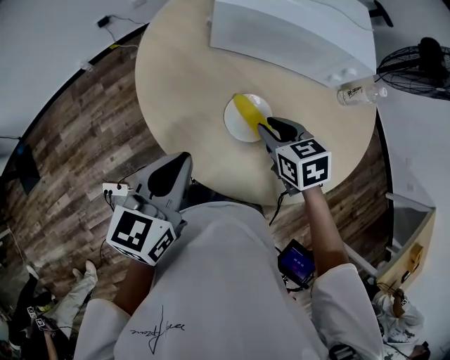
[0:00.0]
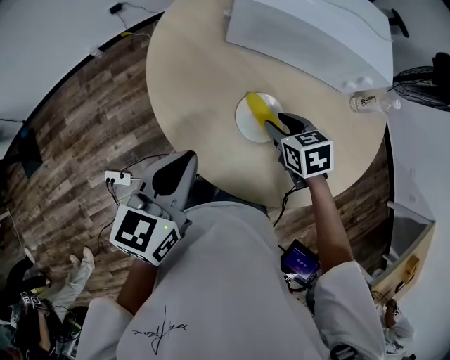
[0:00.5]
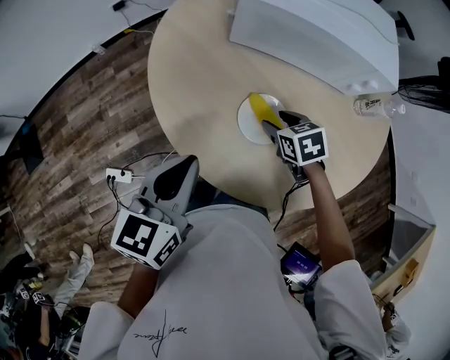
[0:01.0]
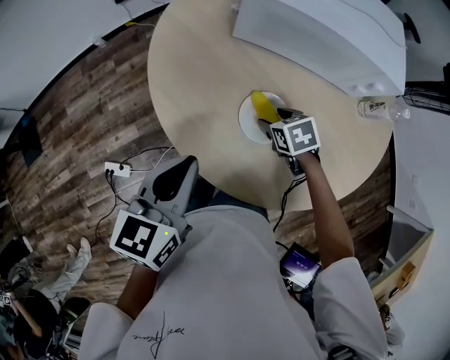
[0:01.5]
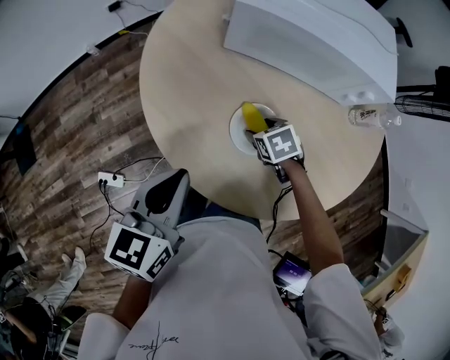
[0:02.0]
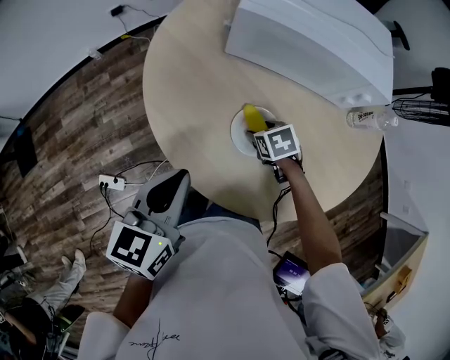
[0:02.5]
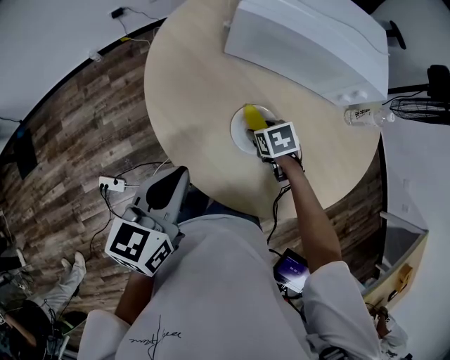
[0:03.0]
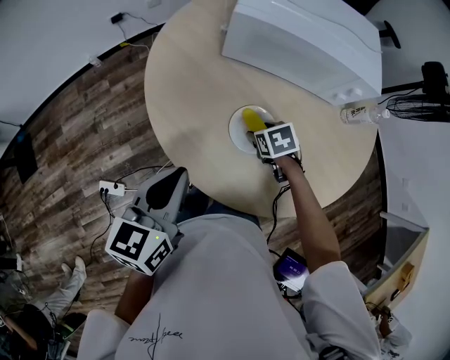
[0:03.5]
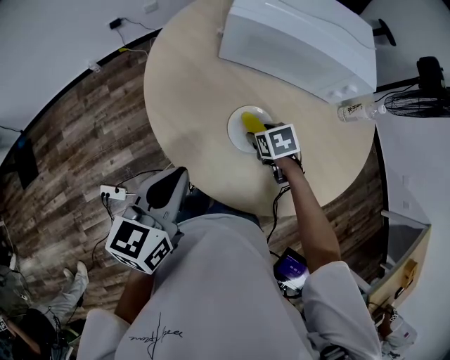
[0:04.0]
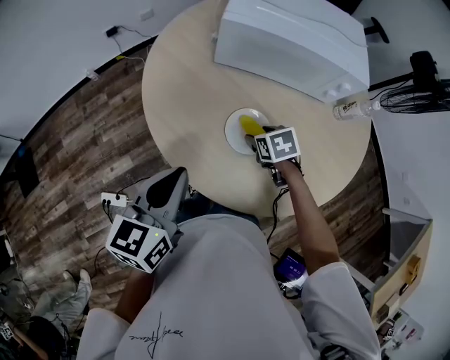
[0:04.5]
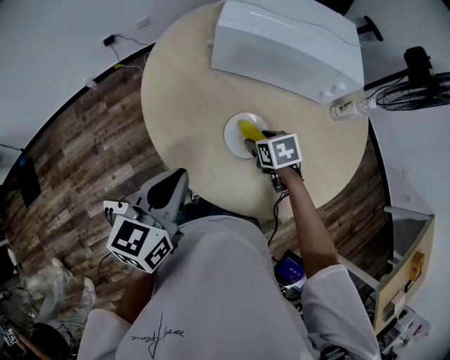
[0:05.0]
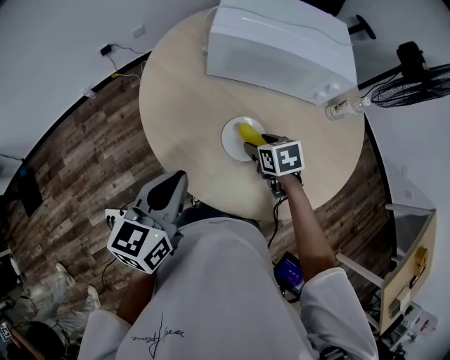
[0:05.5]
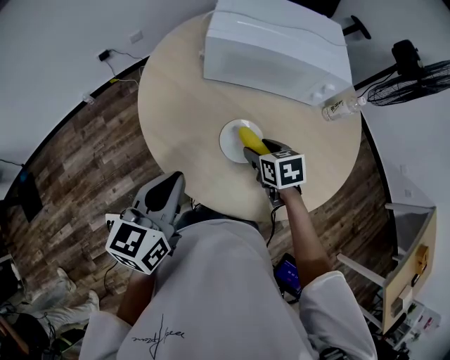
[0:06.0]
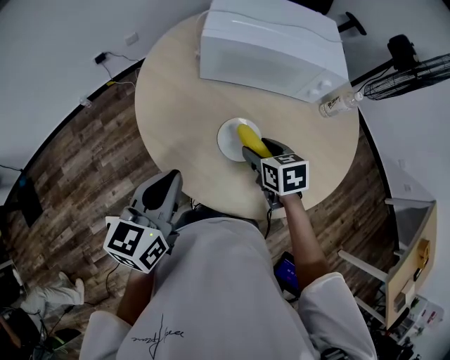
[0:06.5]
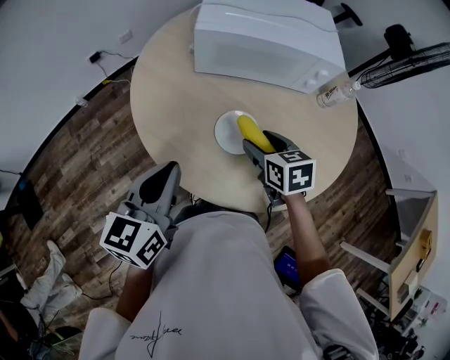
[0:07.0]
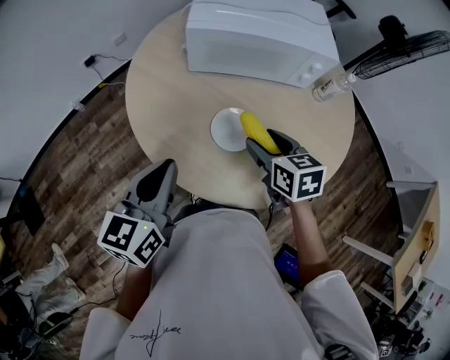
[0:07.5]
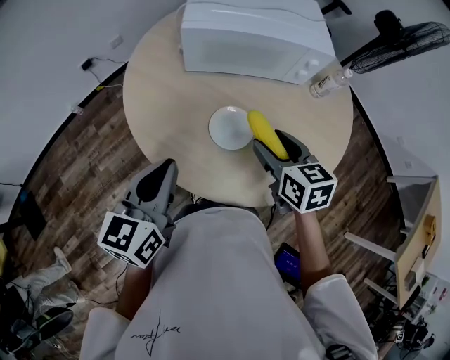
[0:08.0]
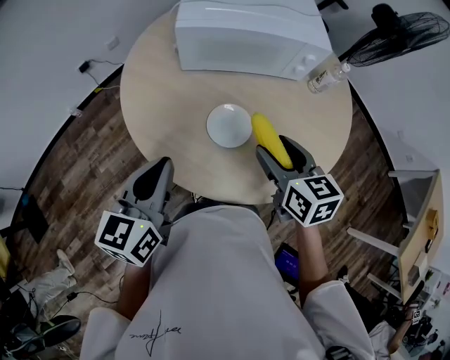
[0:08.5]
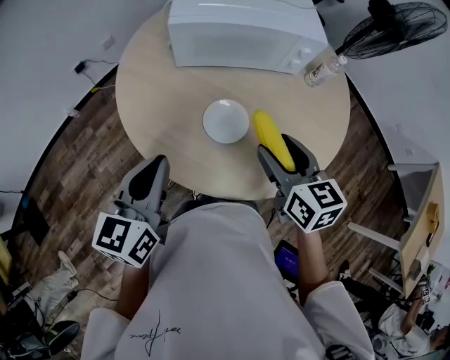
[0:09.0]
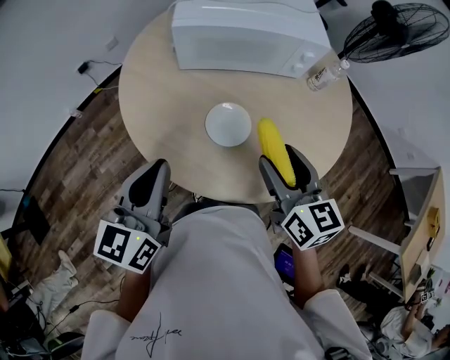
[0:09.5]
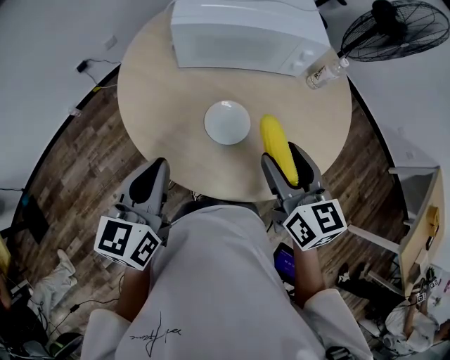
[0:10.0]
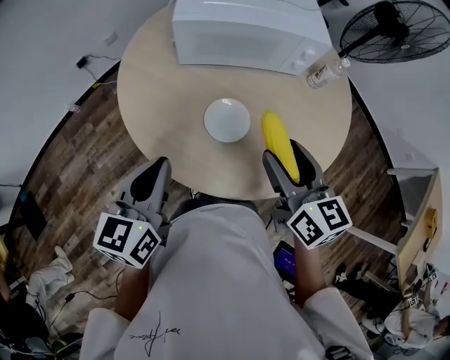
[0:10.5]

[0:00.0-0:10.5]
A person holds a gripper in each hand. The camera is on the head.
0:00.0 to 0:02.0: The right gripper goes roughly 15 cm downward, swivels approximately 20 degrees, and opens up.
0:02.0 to 0:04.0: The grippers make only small movements.
0:04.0 to 0:06.5: The right gripper is displaced upward by approximately 10 cm, and rotates approximately 20 degrees.
0:06.5 to 0:08.5: The right gripper travels upward and backward by about 10 cm, and turns by about 20 degrees.
0:08.5 to 0:10.5: The right gripper moves upward, some 5 cm.

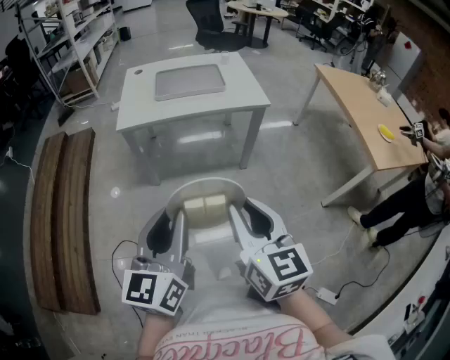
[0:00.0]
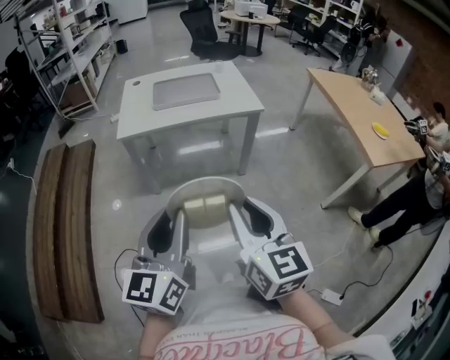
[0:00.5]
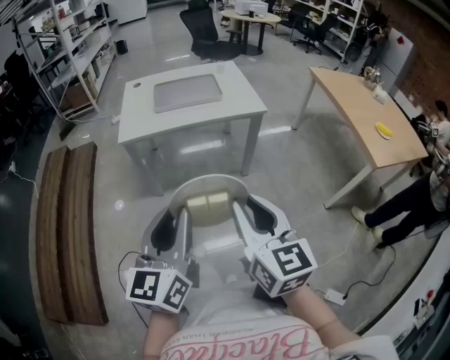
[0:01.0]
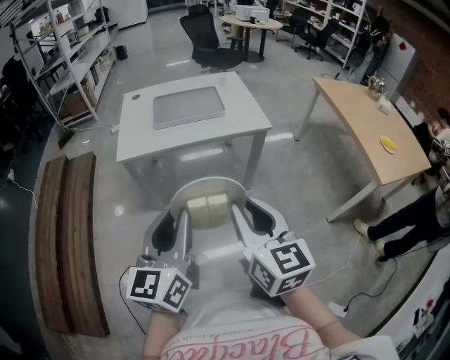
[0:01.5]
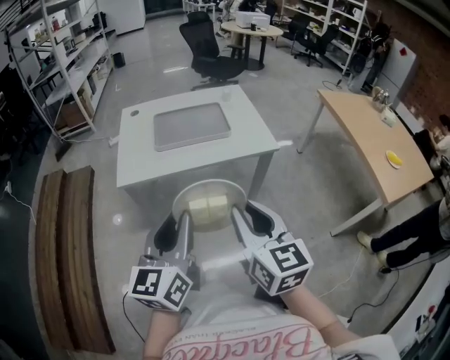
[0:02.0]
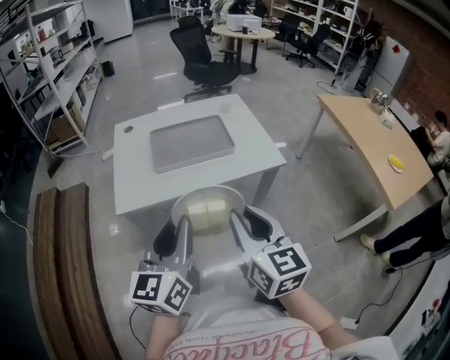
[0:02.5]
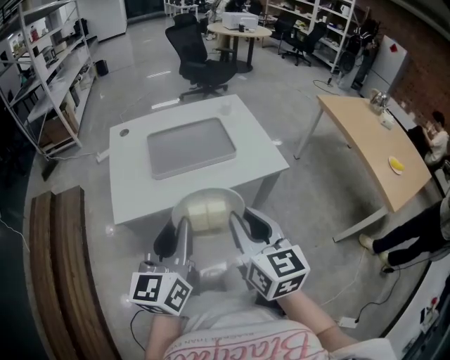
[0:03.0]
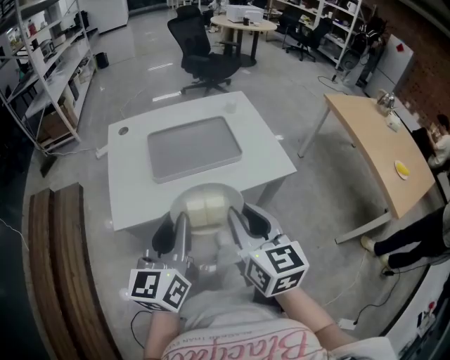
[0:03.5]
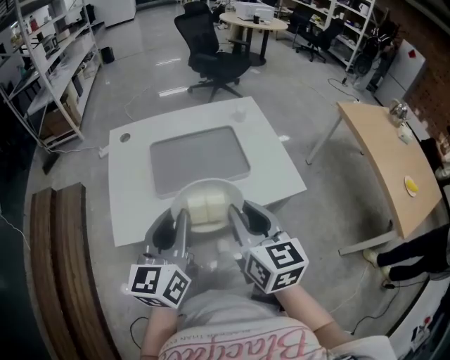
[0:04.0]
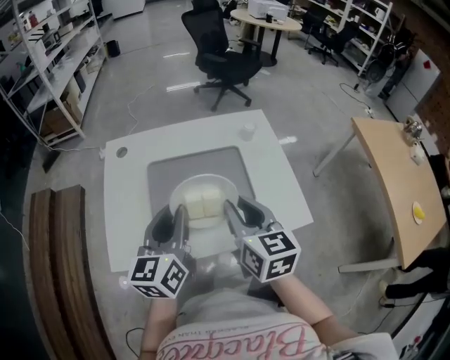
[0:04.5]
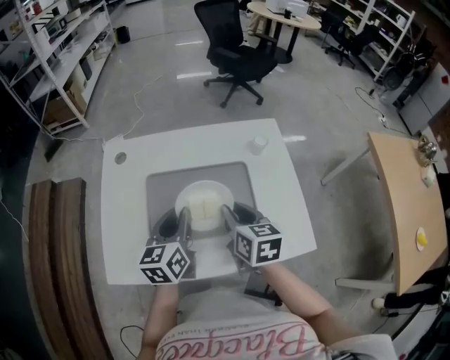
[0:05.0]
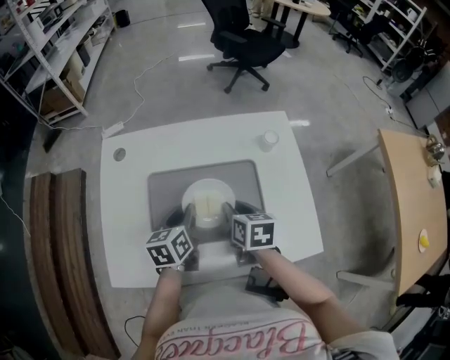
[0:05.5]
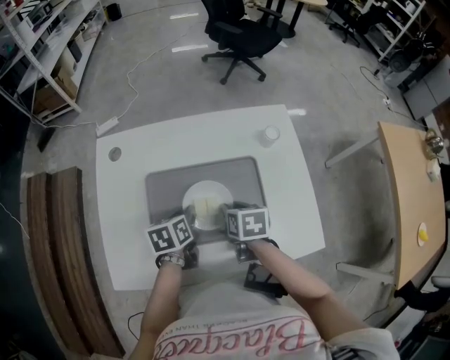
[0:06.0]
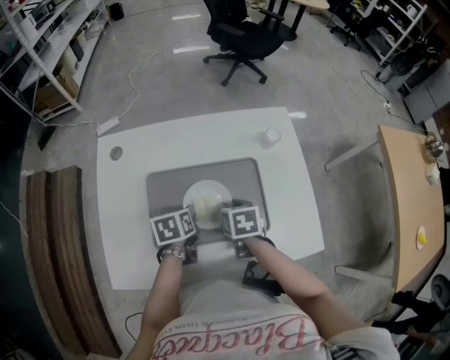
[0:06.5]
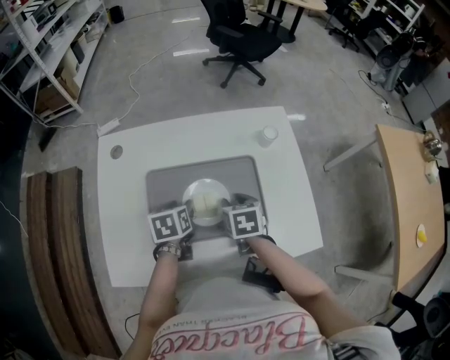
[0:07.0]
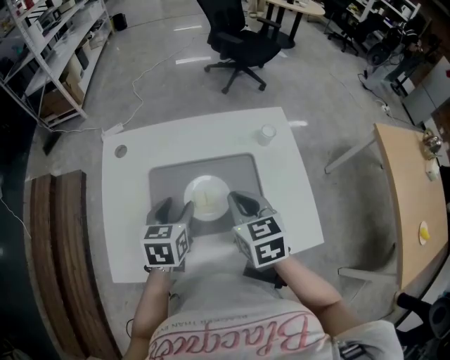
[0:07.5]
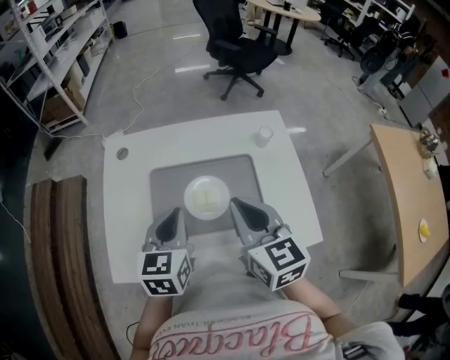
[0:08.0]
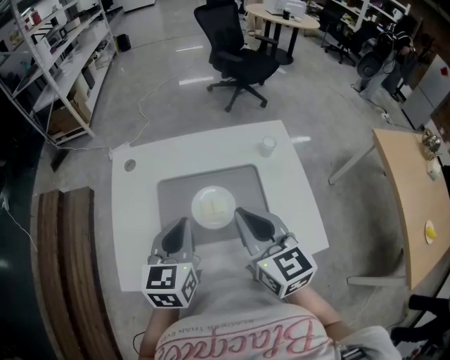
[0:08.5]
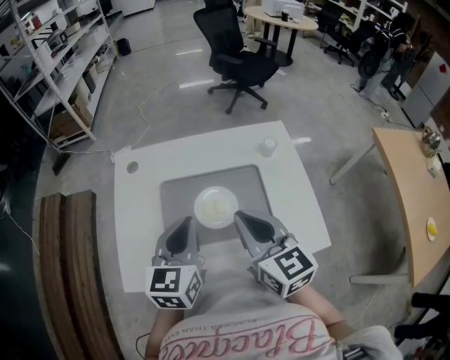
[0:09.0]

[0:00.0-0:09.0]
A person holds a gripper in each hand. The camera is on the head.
0:00.0 to 0:02.0: The grippers both shift forward by about 15 cm.
0:02.0 to 0:04.5: Both grippers move forward, some 35 cm.
0:04.5 to 0:07.0: Both grippers move downward and forward, some 25 cm. The right gripper tips its fingers downward by some 40 degrees; the left gripper tilts its fingers about 50 degrees downward, and opens.
0:07.0 to 0:09.0: The two grippers go some 20 cm upward. The left gripper tips its fingers upward by some 40 degrees, and closes its fingers, while the right gripper points its fingers some 40 degrees further upward, and closes up.

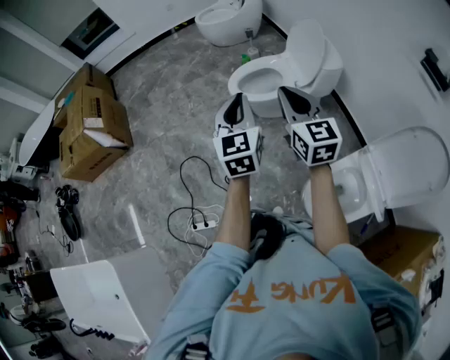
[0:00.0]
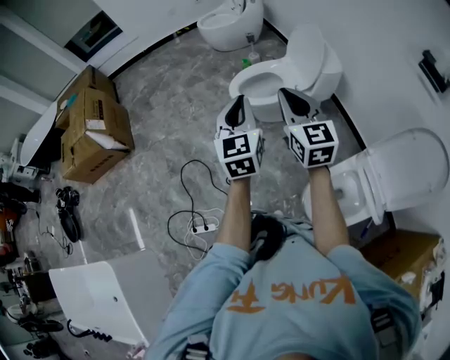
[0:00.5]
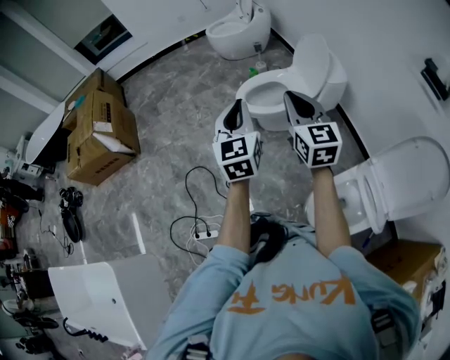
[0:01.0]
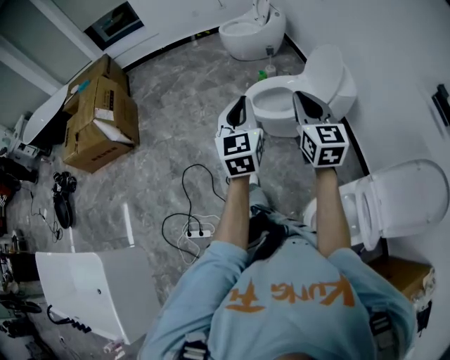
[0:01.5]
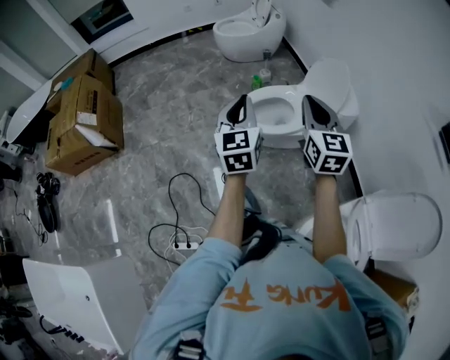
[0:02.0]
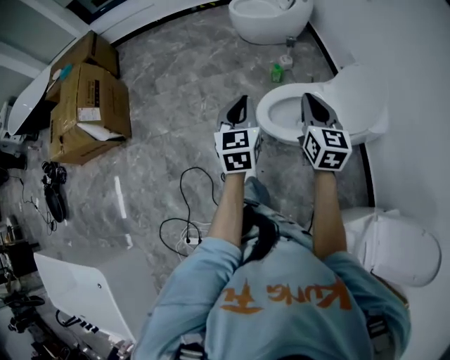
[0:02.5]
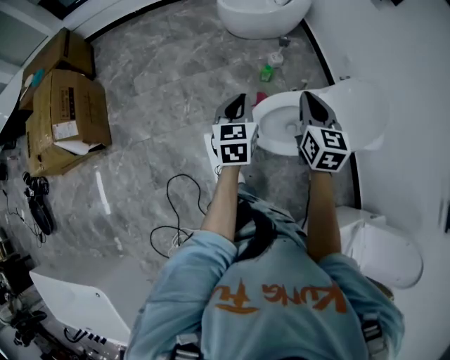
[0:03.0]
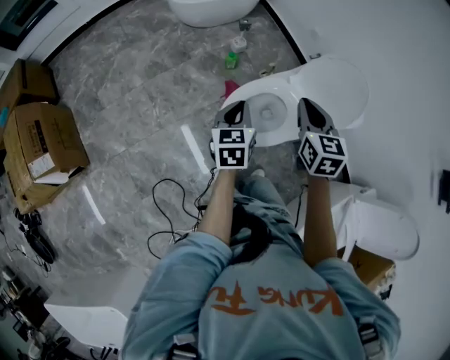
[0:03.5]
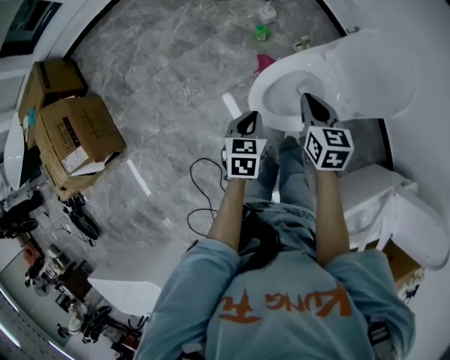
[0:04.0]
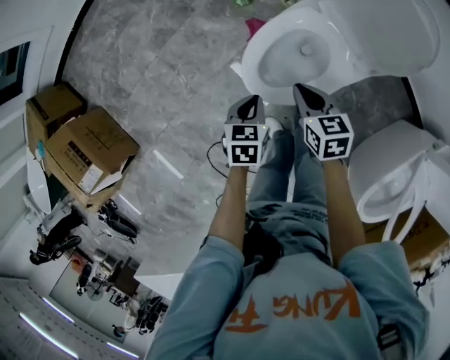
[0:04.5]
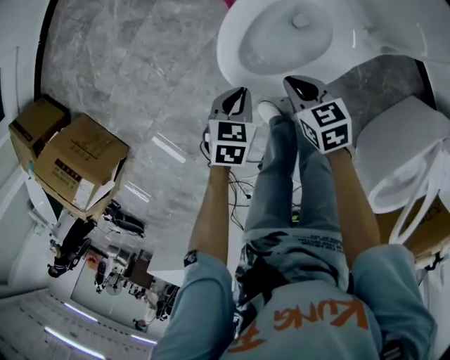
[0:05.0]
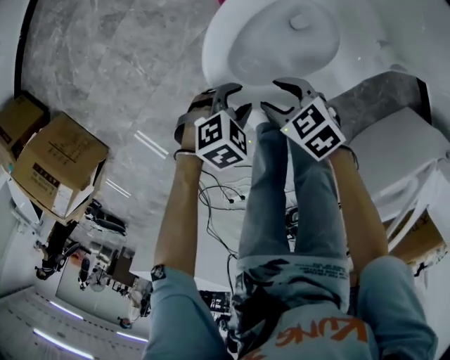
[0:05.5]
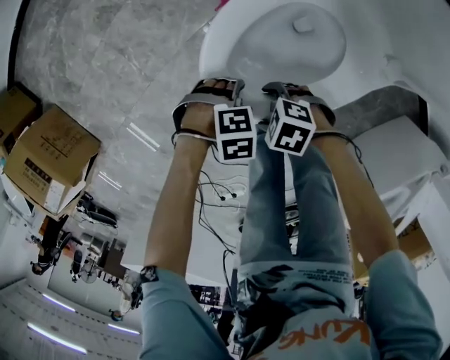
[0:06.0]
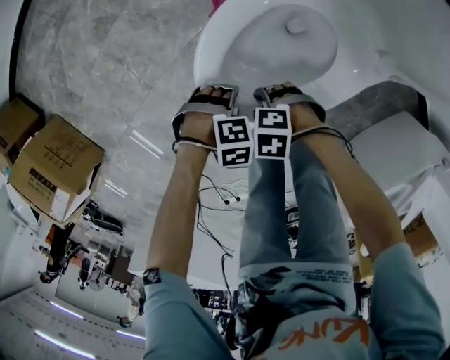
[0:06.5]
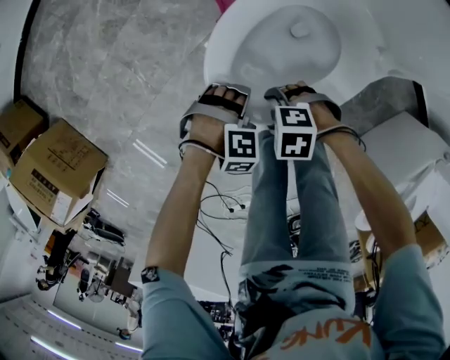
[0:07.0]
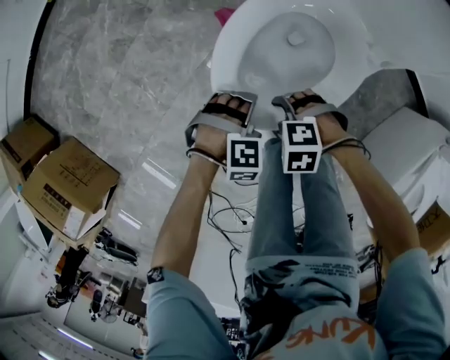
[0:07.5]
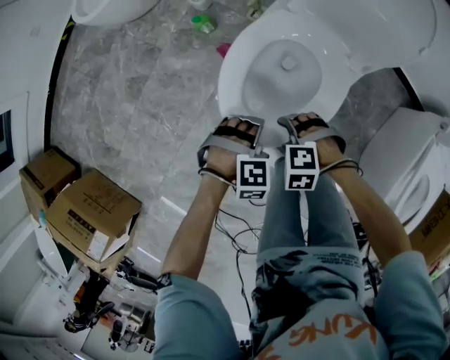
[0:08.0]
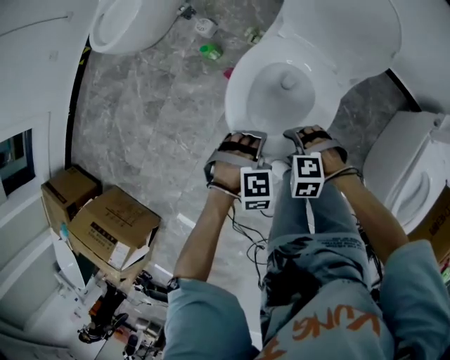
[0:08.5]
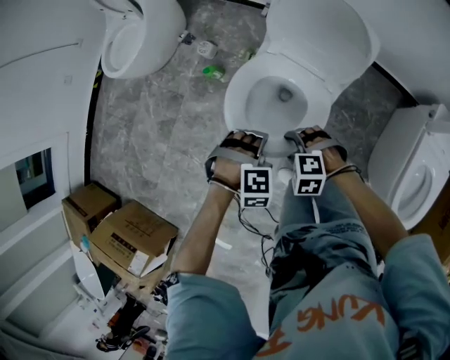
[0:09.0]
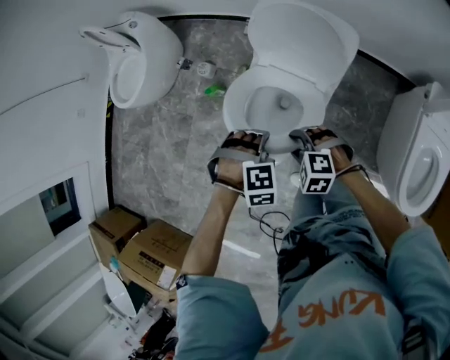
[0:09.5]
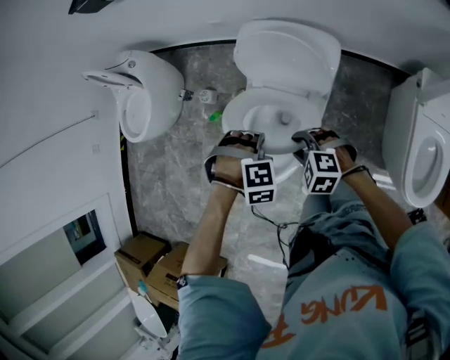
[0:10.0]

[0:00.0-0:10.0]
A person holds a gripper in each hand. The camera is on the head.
0:00.0 to 0:02.0: Both grippers move forward, some 15 cm.
0:02.0 to 0:04.0: The right gripper travels forward and downward by approximately 40 cm, and angles its fingers downward, by about 30 degrees, while the left gripper shifts approximately 40 cm downward and forward, and angles its fingers downward, by about 40 degrees.
0:04.0 to 0:06.0: The two grippers go roughly 40 cm downward. The right gripper rotates some 70 degrees, and opens, while the left gripper swivels roughly 100 degrees, and opens its fingers.
0:06.0 to 0:08.0: The two grippers go about 15 cm upward. The right gripper rotates roughly 30 degrees; the left gripper changes its angle by about 40 degrees.
0:08.0 to 0:10.0: The grippers both shift upward by about 25 cm. The left gripper swivels approximately 20 degrees, and closes its fingers. Meanwhile the right gripper changes its angle by approximately 40 degrees, and closes up.
